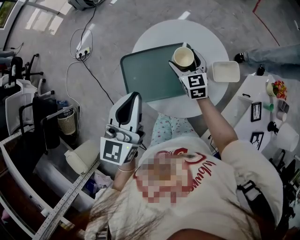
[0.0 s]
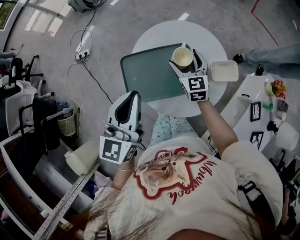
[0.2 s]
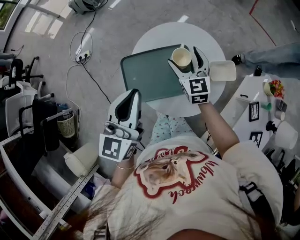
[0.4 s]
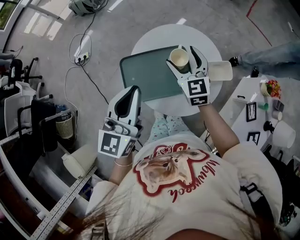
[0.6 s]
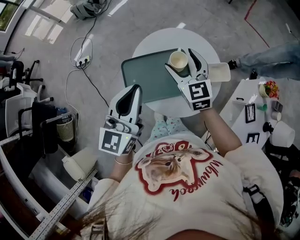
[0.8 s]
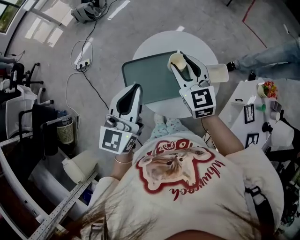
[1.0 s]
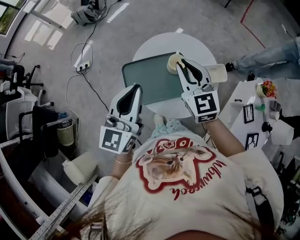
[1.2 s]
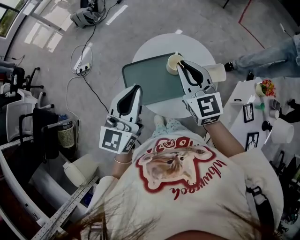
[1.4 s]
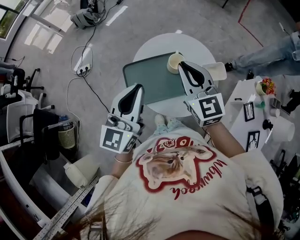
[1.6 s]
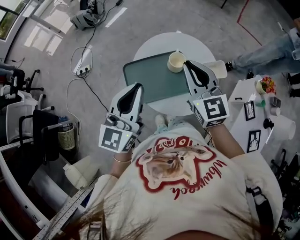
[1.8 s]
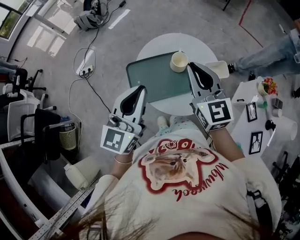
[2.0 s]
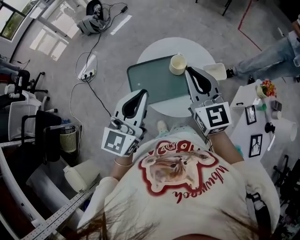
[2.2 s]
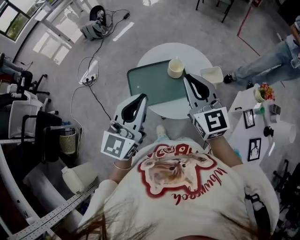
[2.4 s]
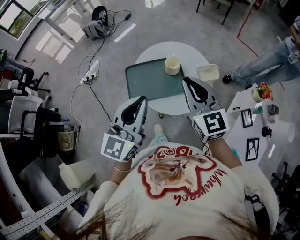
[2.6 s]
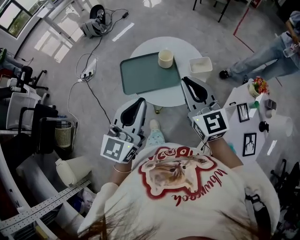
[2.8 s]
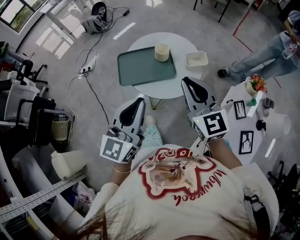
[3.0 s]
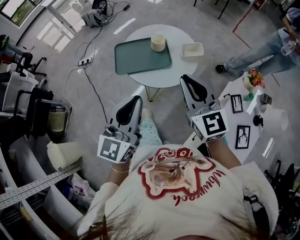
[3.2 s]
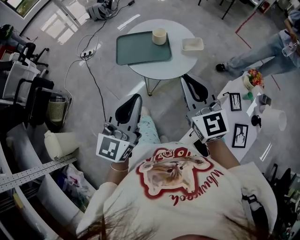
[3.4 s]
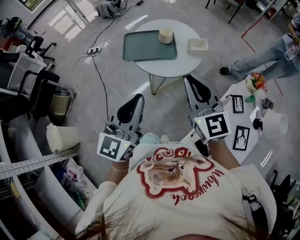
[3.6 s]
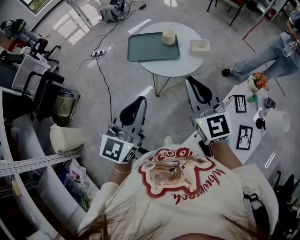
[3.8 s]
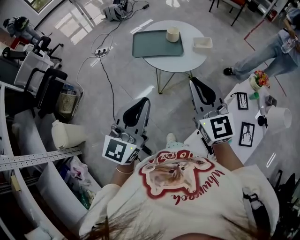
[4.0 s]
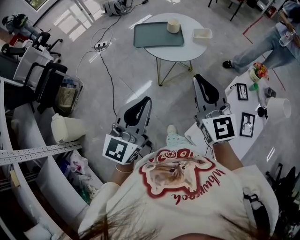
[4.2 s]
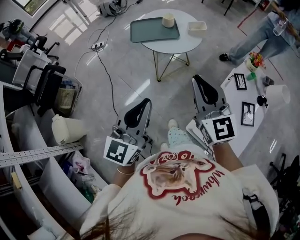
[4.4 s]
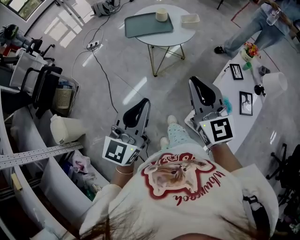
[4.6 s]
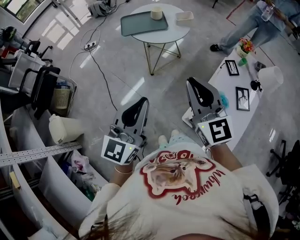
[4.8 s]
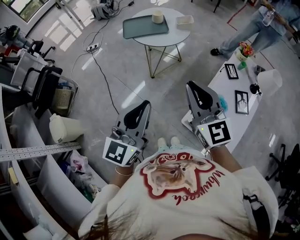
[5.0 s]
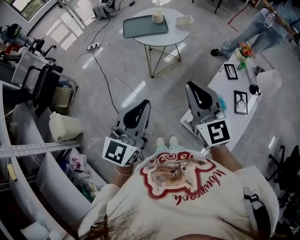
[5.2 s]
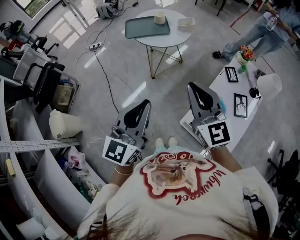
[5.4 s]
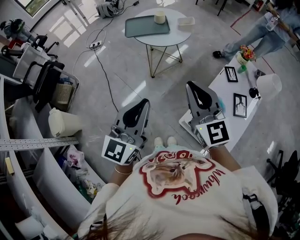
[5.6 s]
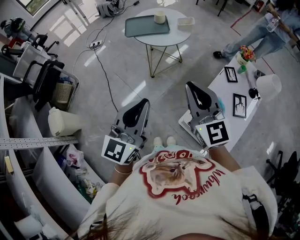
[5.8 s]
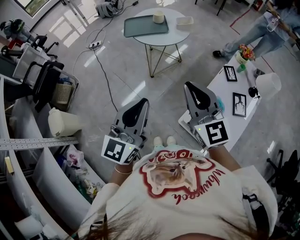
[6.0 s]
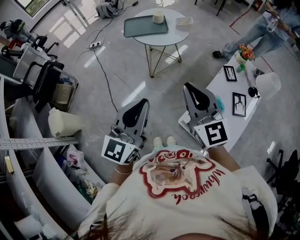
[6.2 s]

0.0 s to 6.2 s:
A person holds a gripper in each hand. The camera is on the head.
0.0 to 1.6 s: The right gripper is displaced upward by approximately 25 cm, and closes its fingers. Meanwhile the left gripper travels upward by approximately 5 cm.
1.6 to 3.2 s: Both grippers travel together backward and to the right, some 25 cm.
3.2 to 4.6 s: The grippers both shift backward by some 30 cm.
4.6 to 6.2 s: The right gripper moves backward, approximately 5 cm. Meanwhile the left gripper travels backward and to the right by roughly 10 cm.

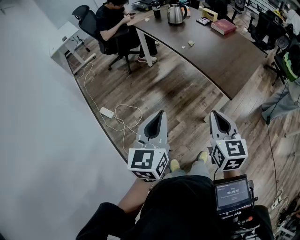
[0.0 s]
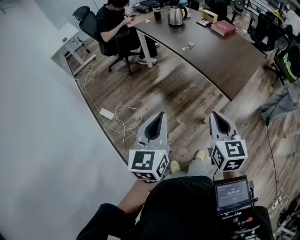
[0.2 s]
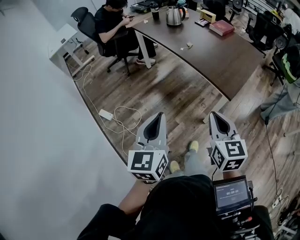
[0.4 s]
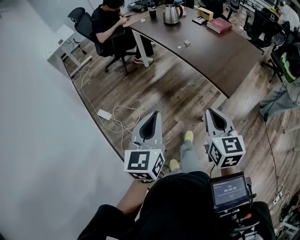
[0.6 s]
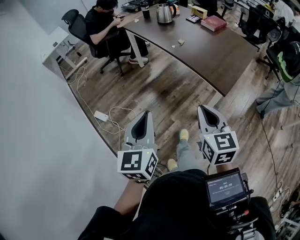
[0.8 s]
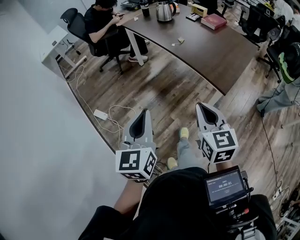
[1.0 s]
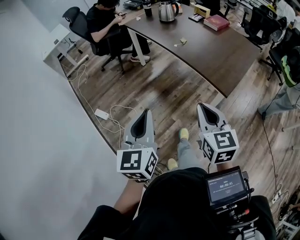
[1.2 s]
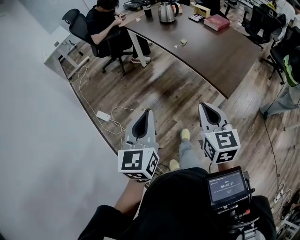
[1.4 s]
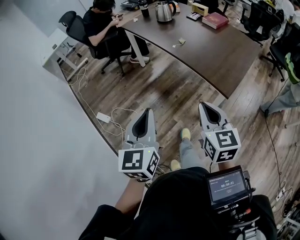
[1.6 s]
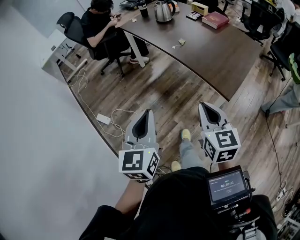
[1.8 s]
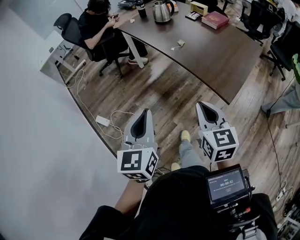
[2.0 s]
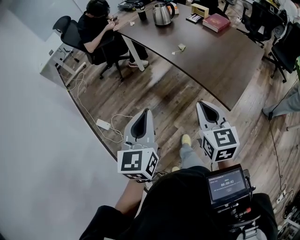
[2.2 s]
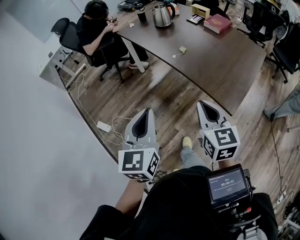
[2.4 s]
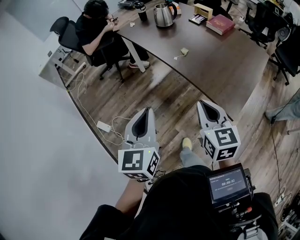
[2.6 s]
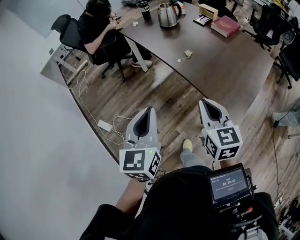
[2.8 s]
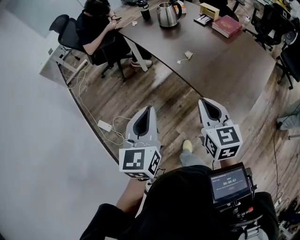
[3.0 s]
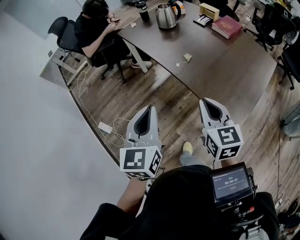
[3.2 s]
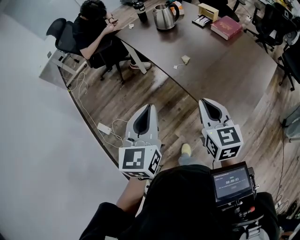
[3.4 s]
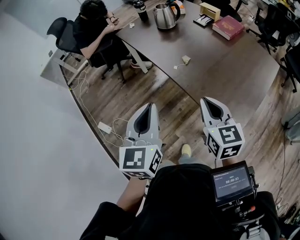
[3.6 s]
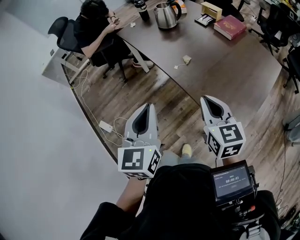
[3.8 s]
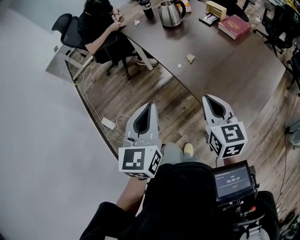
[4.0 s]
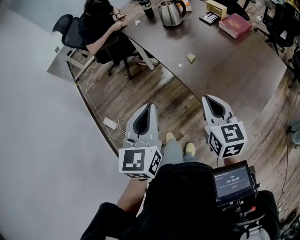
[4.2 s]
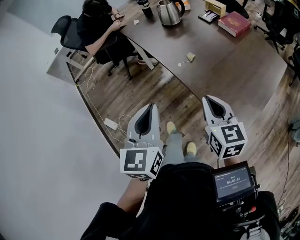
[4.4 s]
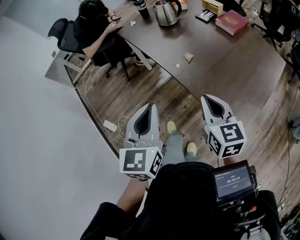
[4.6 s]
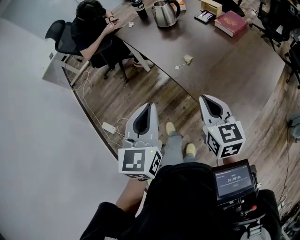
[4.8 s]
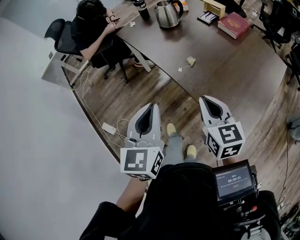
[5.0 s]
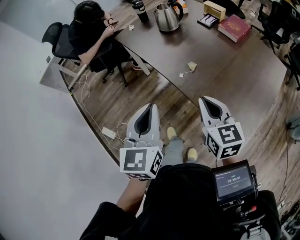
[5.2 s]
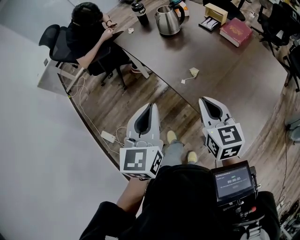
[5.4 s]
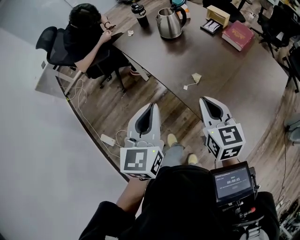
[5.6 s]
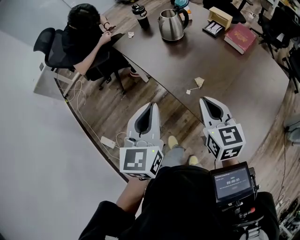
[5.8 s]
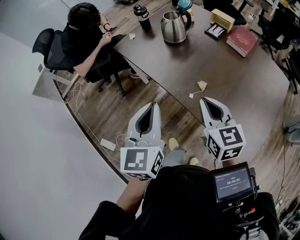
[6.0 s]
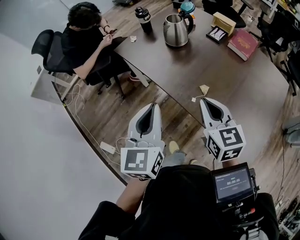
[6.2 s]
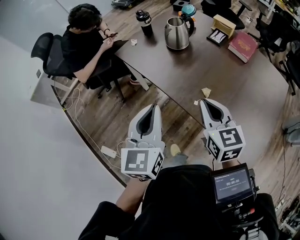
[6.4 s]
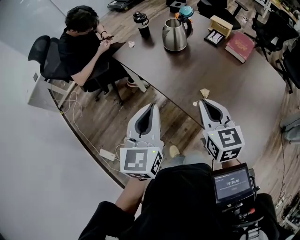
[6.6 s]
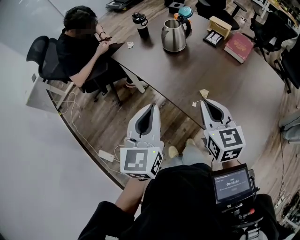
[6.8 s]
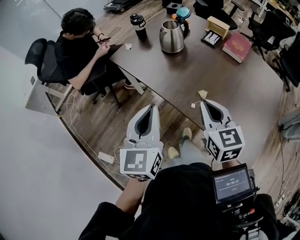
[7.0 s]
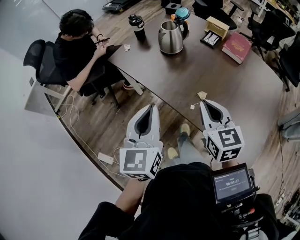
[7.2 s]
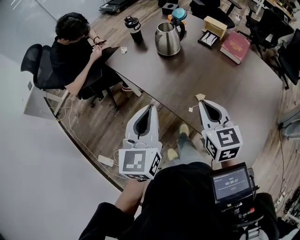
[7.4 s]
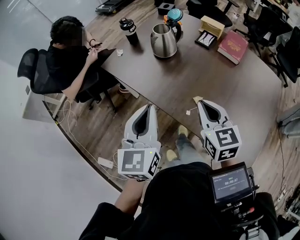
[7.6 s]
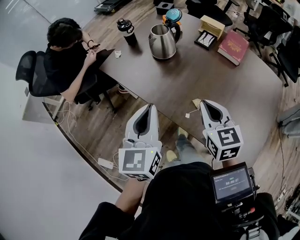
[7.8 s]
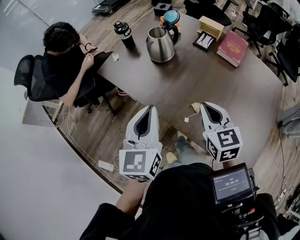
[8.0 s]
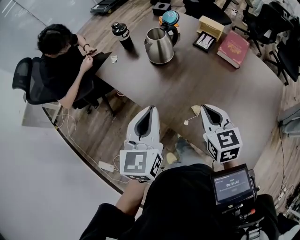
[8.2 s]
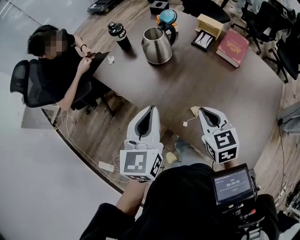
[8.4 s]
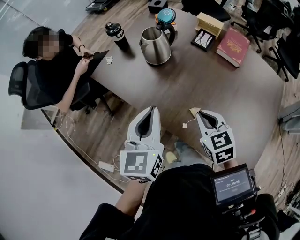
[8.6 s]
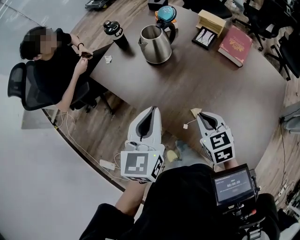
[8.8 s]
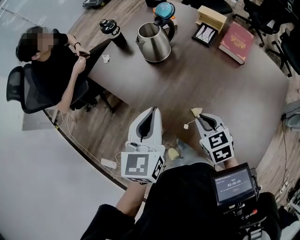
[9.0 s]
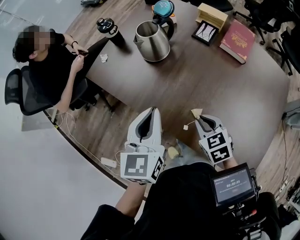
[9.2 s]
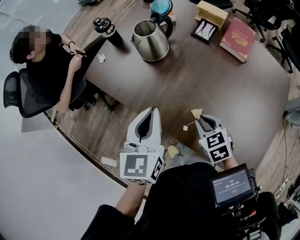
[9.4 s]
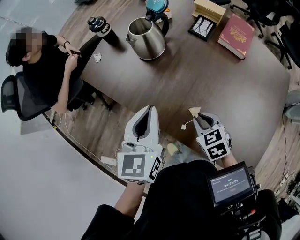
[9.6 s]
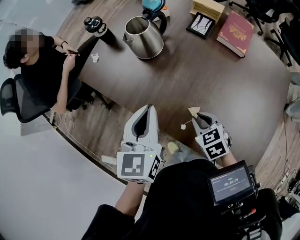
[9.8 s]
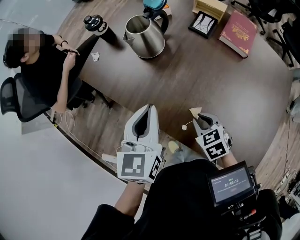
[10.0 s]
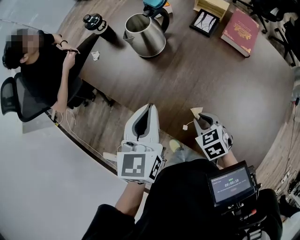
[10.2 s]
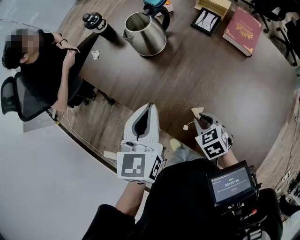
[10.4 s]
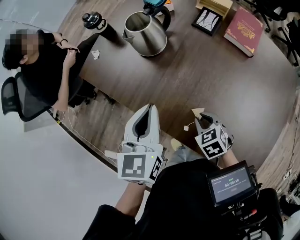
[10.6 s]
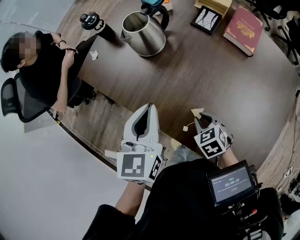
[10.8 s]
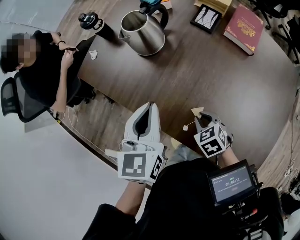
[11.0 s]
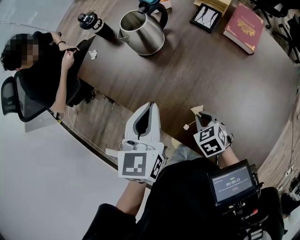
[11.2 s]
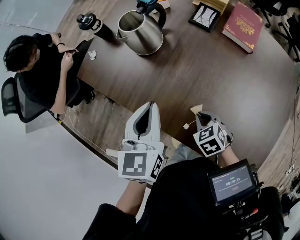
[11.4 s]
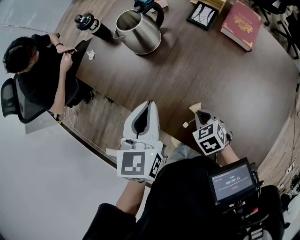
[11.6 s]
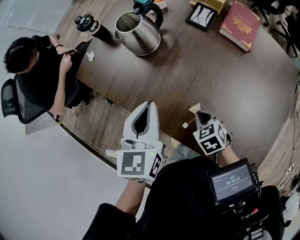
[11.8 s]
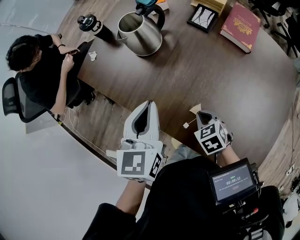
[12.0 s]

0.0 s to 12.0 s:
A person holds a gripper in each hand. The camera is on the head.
0.0 to 1.6 s: The right gripper travels forward by some 5 cm.
1.6 to 3.0 s: The two grippers go roughly 25 cm forward.
3.0 to 4.4 s: The right gripper goes about 10 cm forward and to the right, while the left gripper moves to the right and forward, roughly 10 cm.
4.4 to 6.0 s: The two grippers go about 20 cm forward.
6.0 to 7.6 s: Both grippers move forward, roughly 10 cm.
7.6 to 9.0 s: The left gripper moves forward, downward and to the right, some 15 cm. The right gripper moves downward and forward, approximately 15 cm, and rotates roughly 20 degrees.
9.0 to 10.4 s: The right gripper is displaced downward by about 10 cm; the left gripper ends up roughly 5 cm from where it was.
10.4 to 12.0 s: The grippers move only a little.

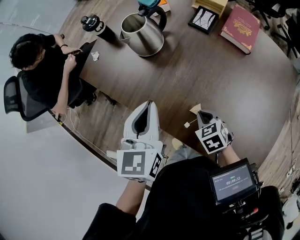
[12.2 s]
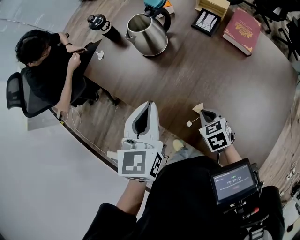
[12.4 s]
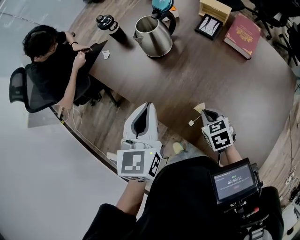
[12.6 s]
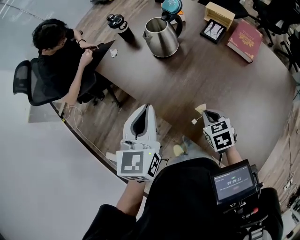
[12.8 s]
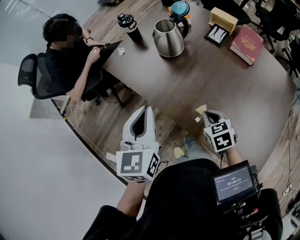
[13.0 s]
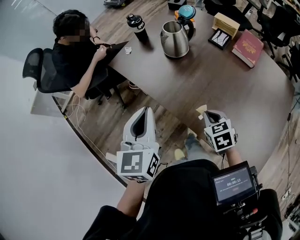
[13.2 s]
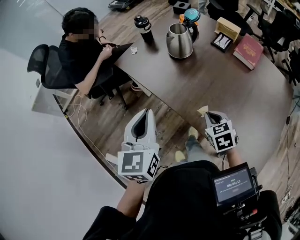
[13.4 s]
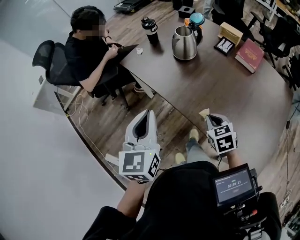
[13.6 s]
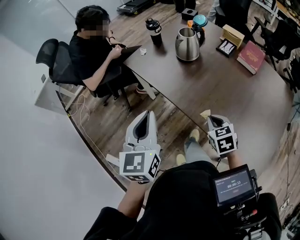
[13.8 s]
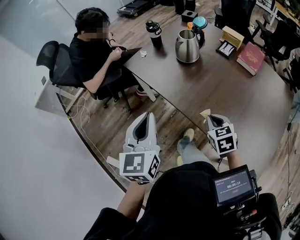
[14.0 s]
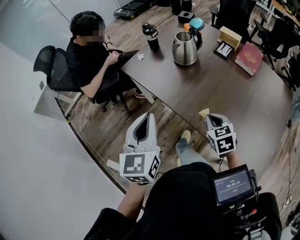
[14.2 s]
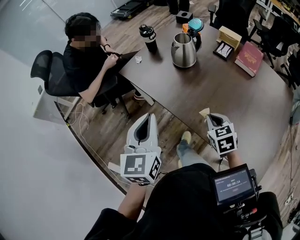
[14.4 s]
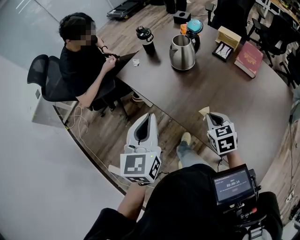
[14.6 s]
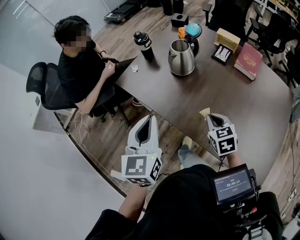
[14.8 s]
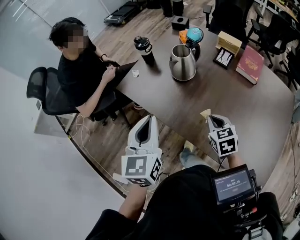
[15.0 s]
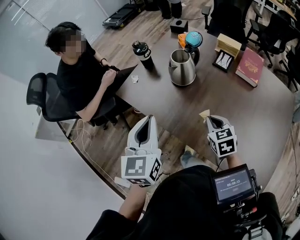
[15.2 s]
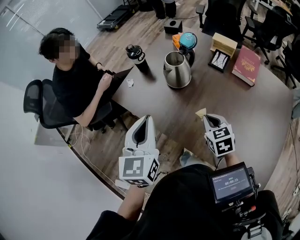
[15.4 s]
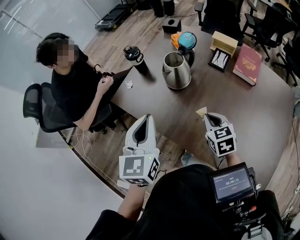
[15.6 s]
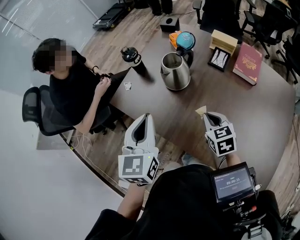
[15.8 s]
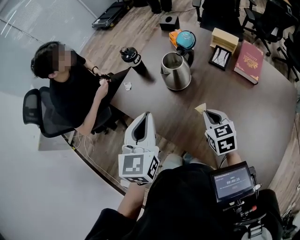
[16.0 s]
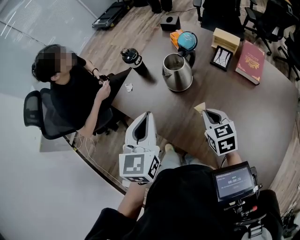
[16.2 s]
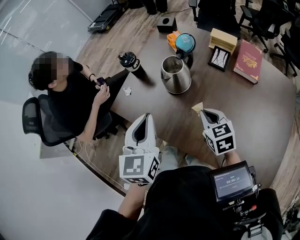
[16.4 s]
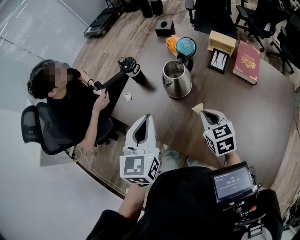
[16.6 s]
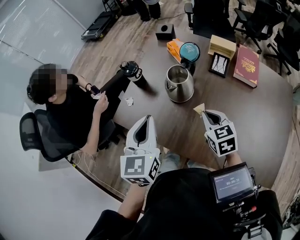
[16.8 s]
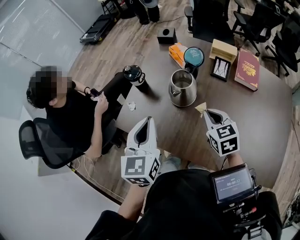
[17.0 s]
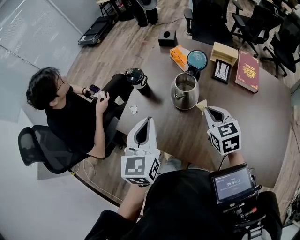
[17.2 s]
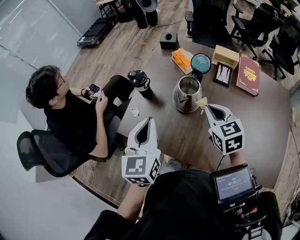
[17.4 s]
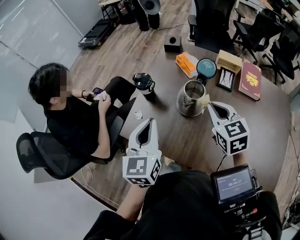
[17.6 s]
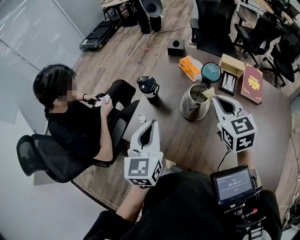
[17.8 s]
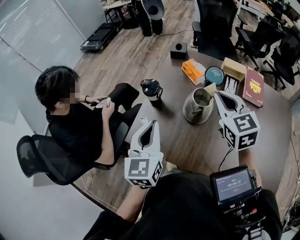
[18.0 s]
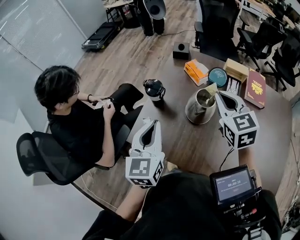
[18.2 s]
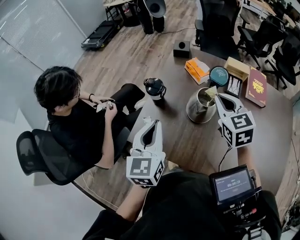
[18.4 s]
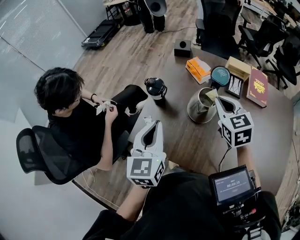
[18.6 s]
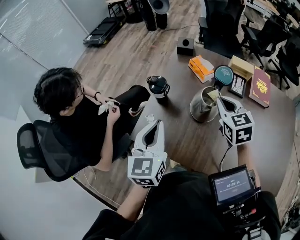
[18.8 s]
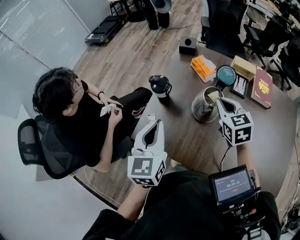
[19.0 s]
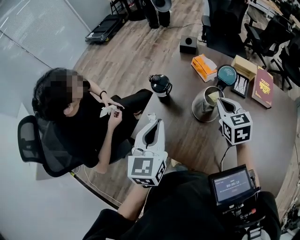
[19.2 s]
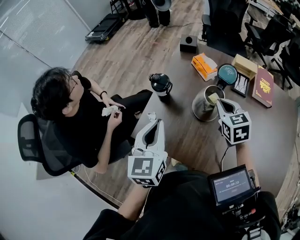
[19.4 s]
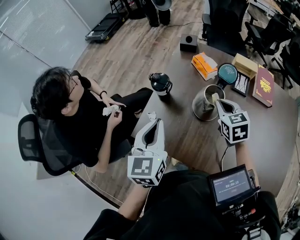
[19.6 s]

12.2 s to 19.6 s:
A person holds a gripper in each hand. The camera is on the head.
12.2 to 13.6 s: The left gripper is displaced to the left, backward and upward by about 25 cm. Meanwhile the right gripper shifts roughly 15 cm upward, to the left and backward.
13.6 to 15.2 s: The two grippers go roughly 15 cm forward.
15.2 to 16.6 s: Both grippers move forward, some 10 cm.
16.6 to 18.2 s: The right gripper heads upward, forward and to the left, covering roughly 25 cm, and changes its angle by some 20 degrees. The left gripper heads to the left and forward, covering some 15 cm.
18.2 to 19.6 s: The right gripper moves downward, about 15 cm.
